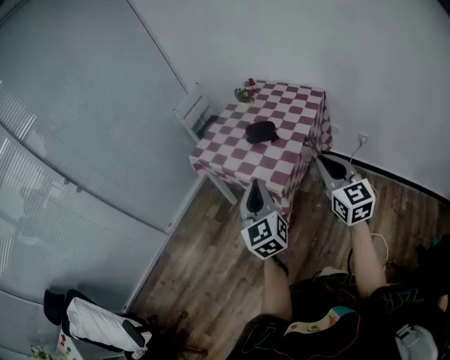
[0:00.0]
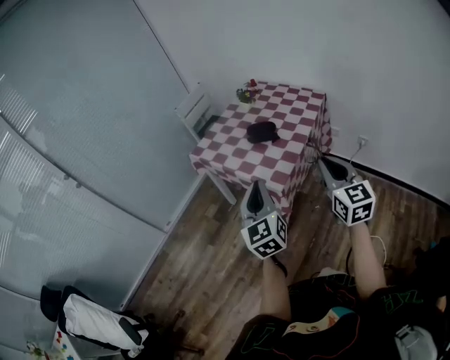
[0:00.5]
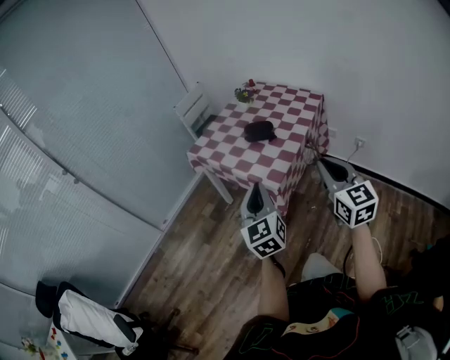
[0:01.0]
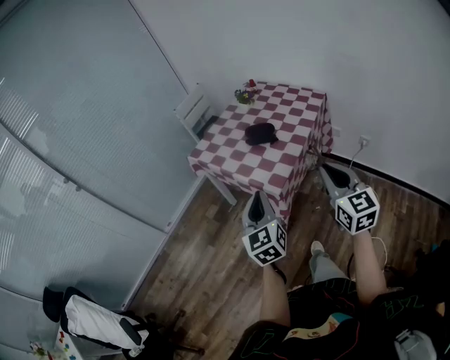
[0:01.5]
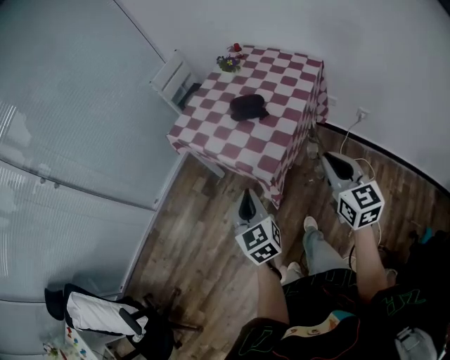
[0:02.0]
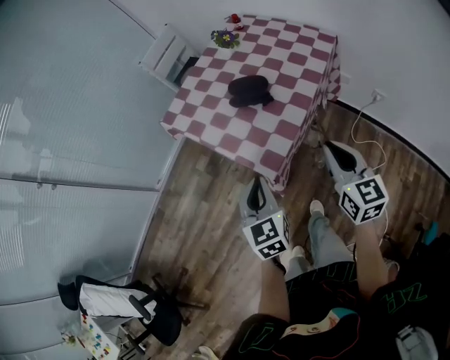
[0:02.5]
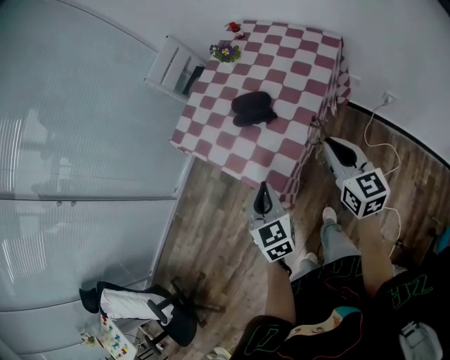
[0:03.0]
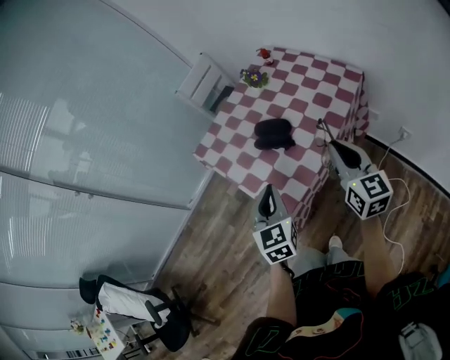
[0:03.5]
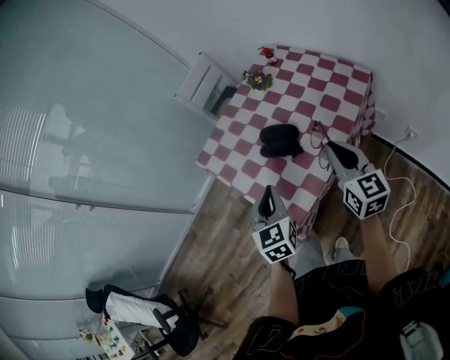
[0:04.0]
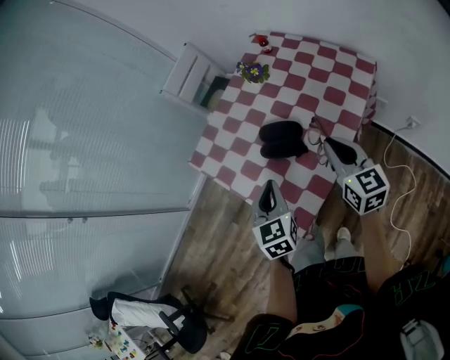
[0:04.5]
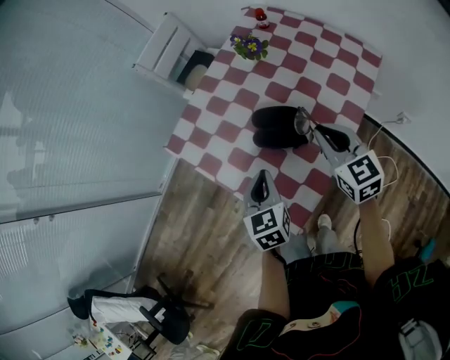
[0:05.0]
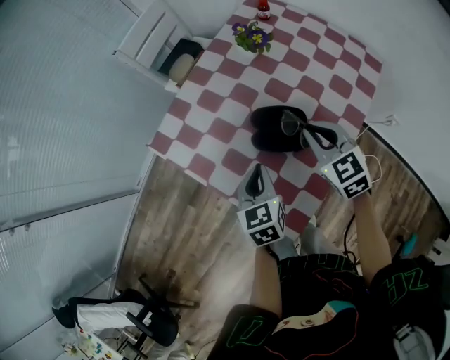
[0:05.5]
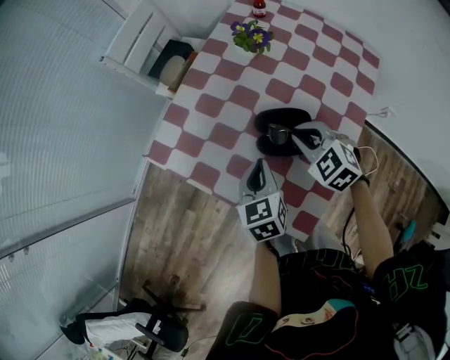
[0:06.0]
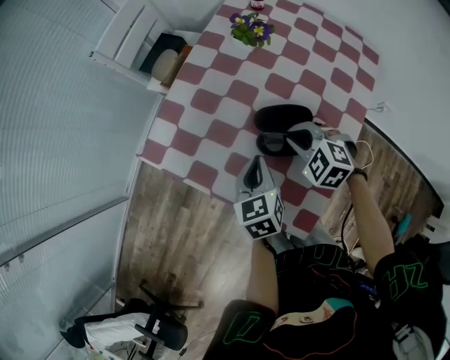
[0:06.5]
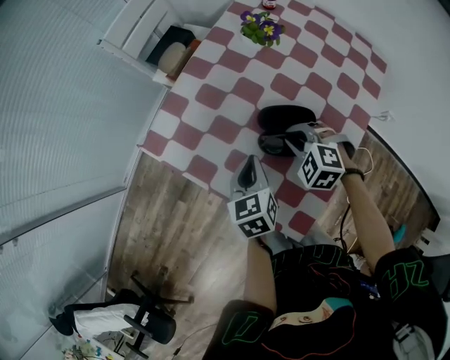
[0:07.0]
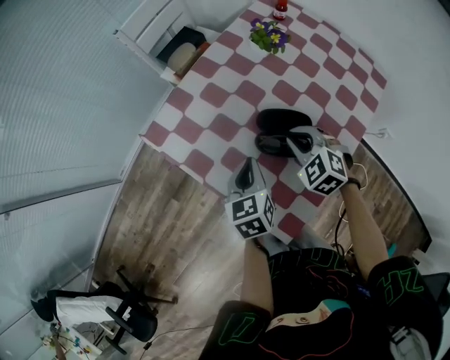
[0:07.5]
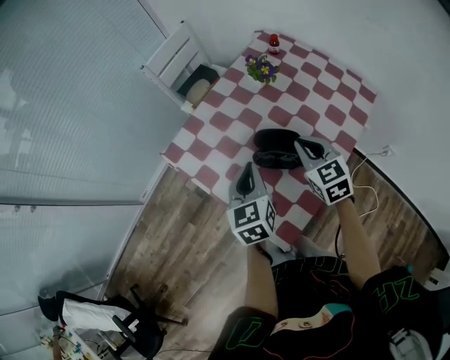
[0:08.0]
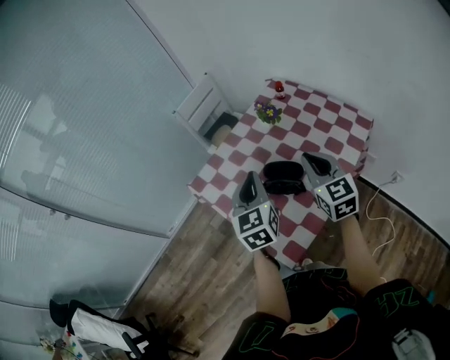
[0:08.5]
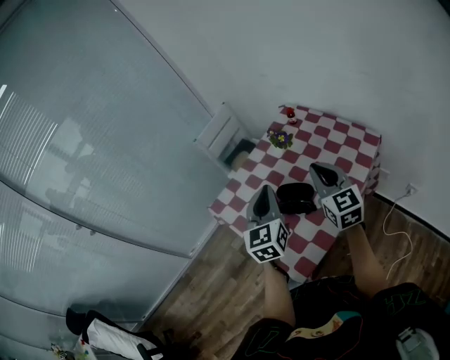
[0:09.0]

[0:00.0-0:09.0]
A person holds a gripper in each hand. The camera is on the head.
0.0 to 2.0 s: The left gripper shifts some 10 cm downward, and turns by about 20 degrees. Meanwhile the right gripper shifts roughly 5 cm downward.
2.0 to 4.5 s: The two grippers go roughly 30 cm forward.
4.5 to 7.0 s: The left gripper heads downward, forward and to the left, covering some 20 cm, and swivels roughly 20 degrees. Meanwhile the right gripper shifts roughly 25 cm downward, to the left and forward, and tips its fingers downward by roughly 50 degrees.
7.0 to 9.0 s: The grippers both shift upward by some 30 cm. The right gripper tips its fingers upward by approximately 60 degrees. The left gripper points its fingers some 30 degrees further upward.

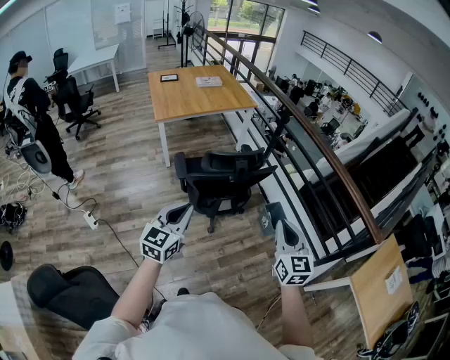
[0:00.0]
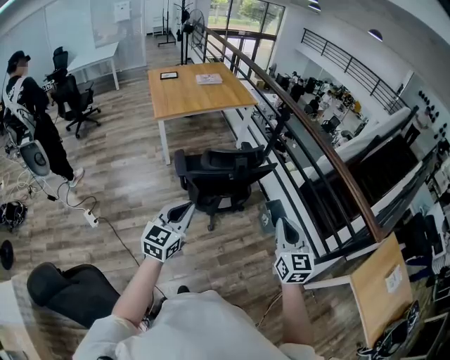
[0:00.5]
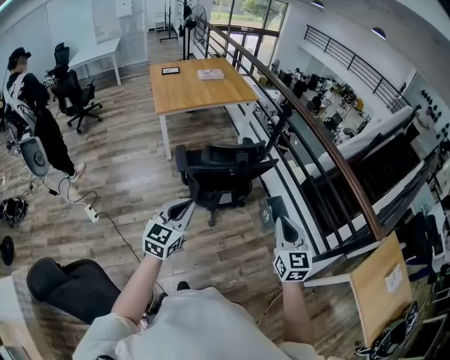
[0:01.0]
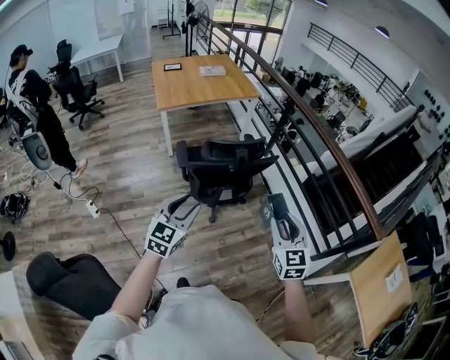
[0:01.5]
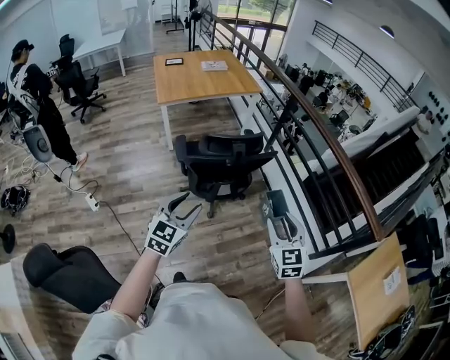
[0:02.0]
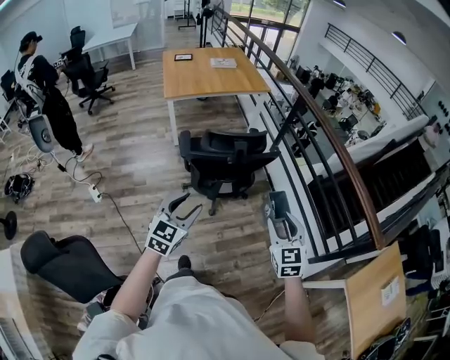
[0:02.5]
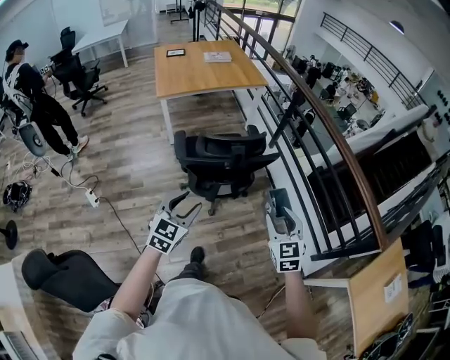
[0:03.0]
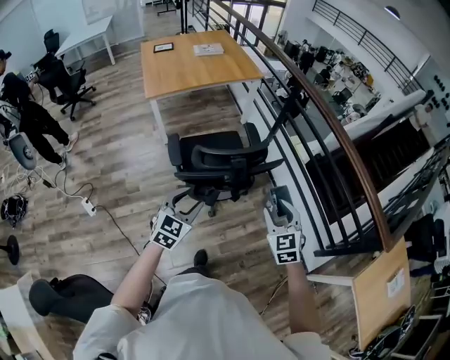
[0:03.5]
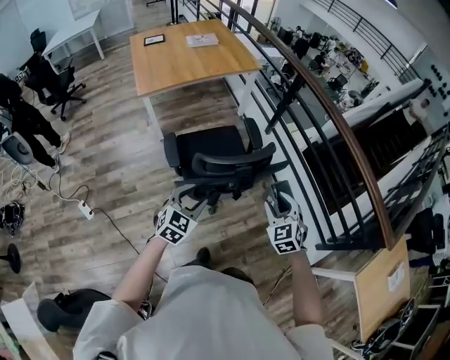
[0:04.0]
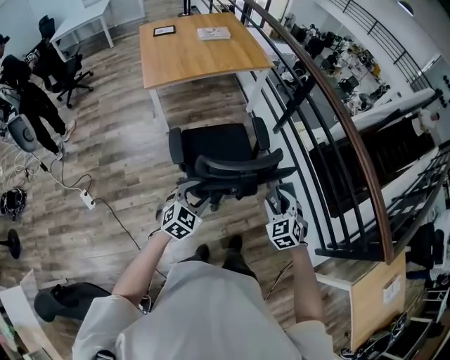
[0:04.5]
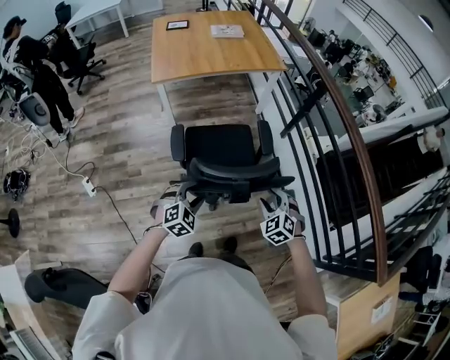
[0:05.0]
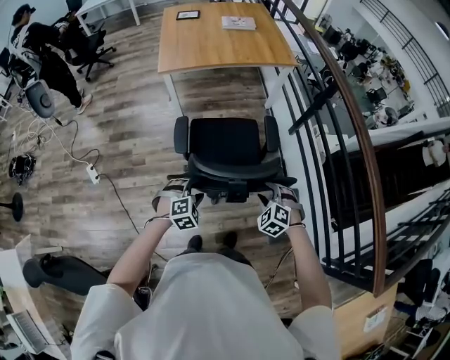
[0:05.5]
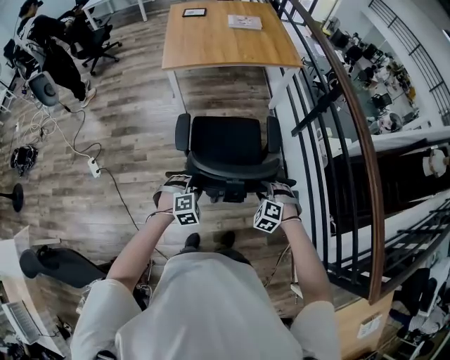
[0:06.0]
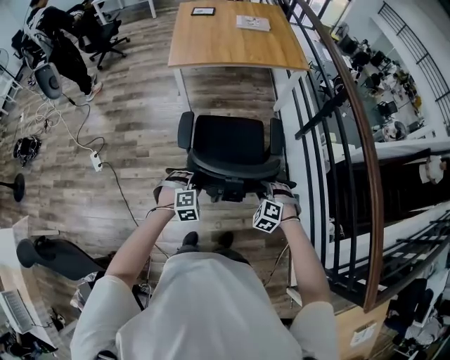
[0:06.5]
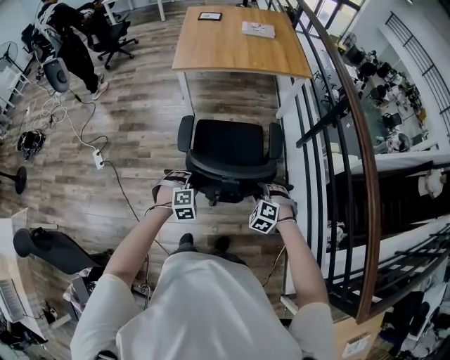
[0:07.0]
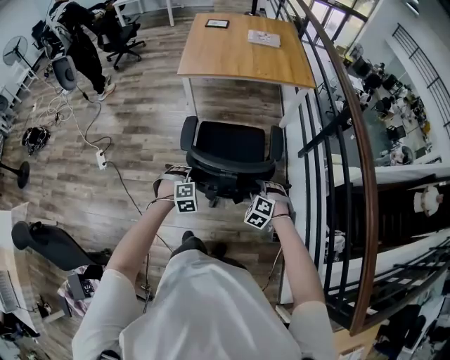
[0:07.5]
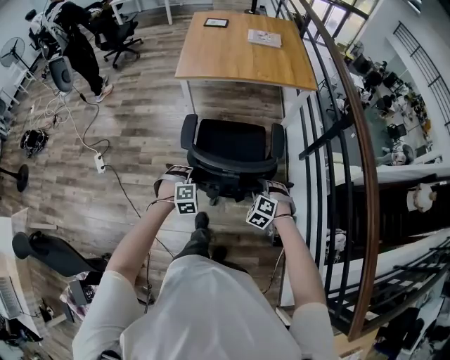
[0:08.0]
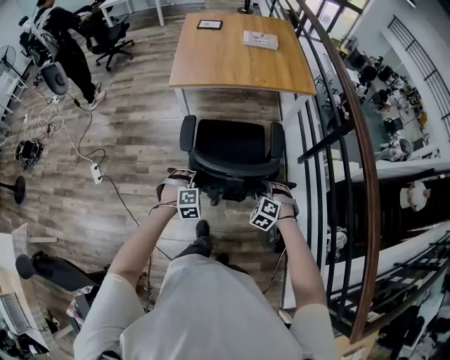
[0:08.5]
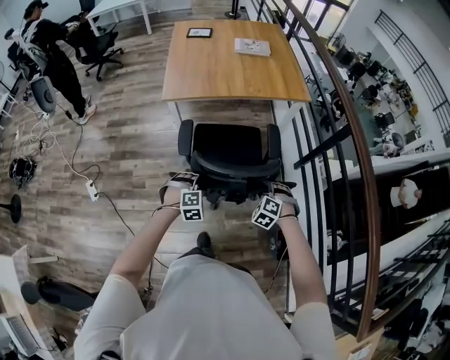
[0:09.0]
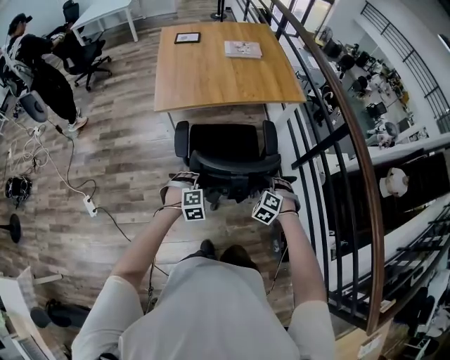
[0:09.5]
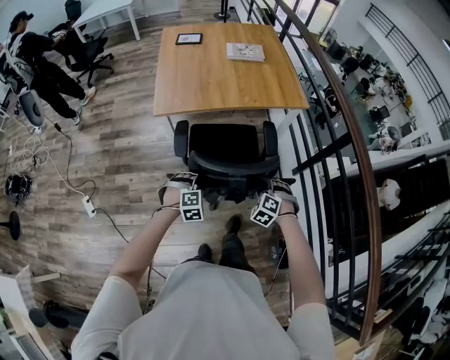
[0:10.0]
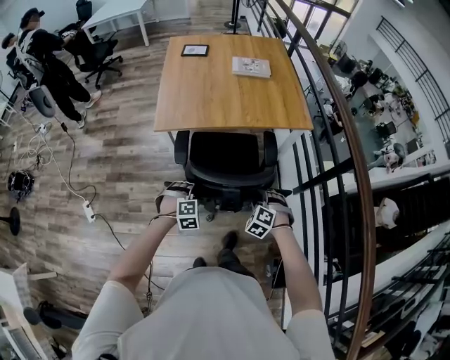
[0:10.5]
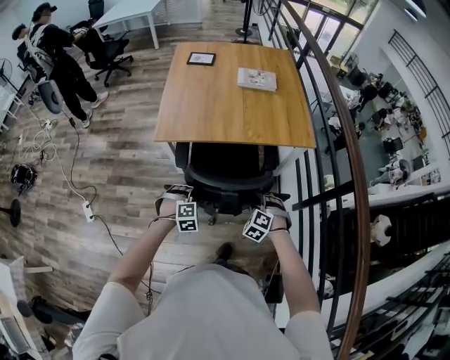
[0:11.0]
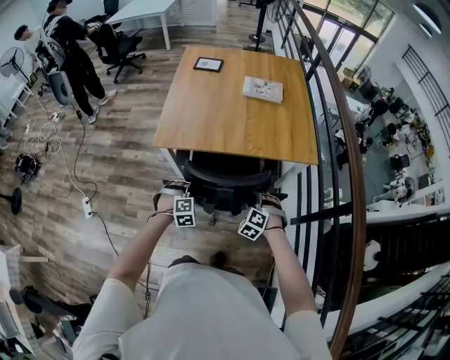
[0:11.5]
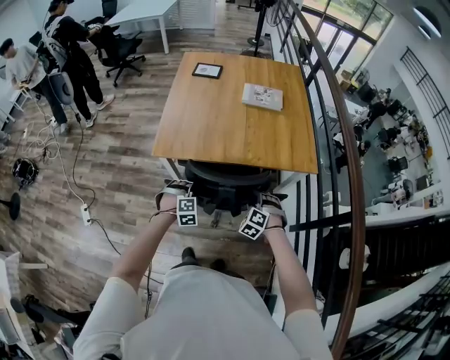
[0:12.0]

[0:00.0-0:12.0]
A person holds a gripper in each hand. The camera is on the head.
0.0 to 2.0 s: The left gripper is displaced to the right by roughly 5 cm, and opens its fingers. The right gripper goes roughly 5 cm downward, and opens its fingers.
2.0 to 4.0 s: The grippers both shift forward and downward by roughly 30 cm. The right gripper changes its angle by some 20 degrees.
4.0 to 6.0 s: The grippers both shift downward and forward by approximately 20 cm. The right gripper rolls counterclockwise, seen from behind, by about 50 degrees, while the left gripper turns by roughly 40 degrees.
6.0 to 8.0 s: Both grippers travel together forward, about 10 cm.
8.0 to 10.0 s: The grippers both shift forward by approximately 25 cm.
10.0 to 12.0 s: The two grippers go about 25 cm forward.

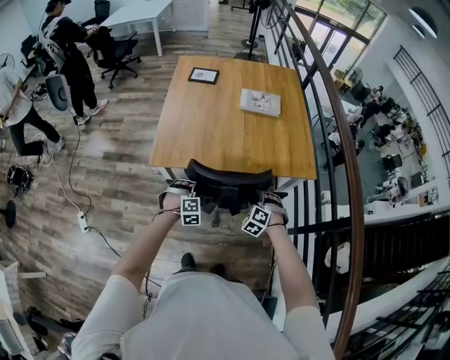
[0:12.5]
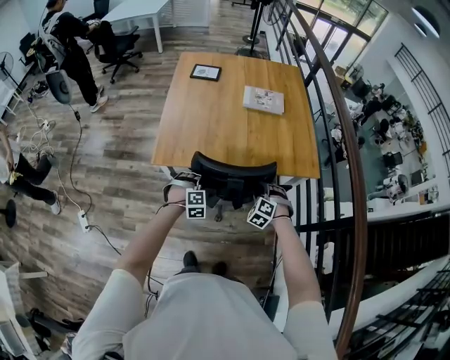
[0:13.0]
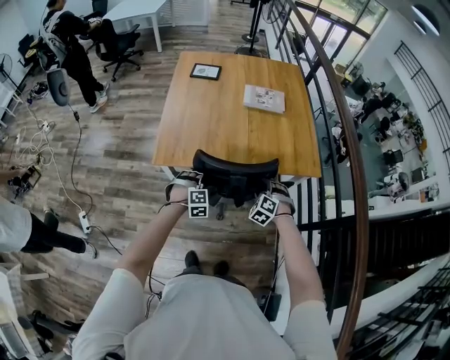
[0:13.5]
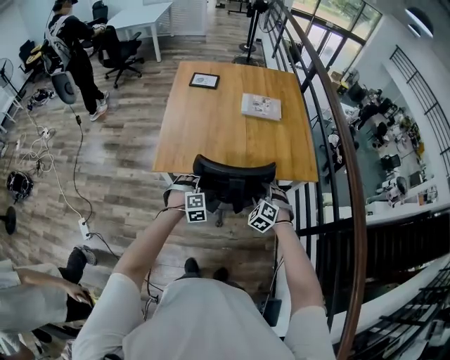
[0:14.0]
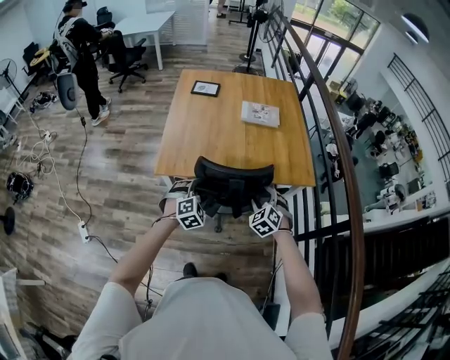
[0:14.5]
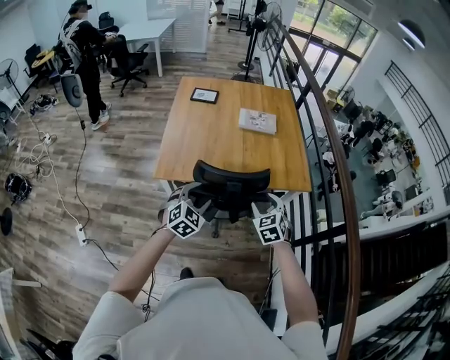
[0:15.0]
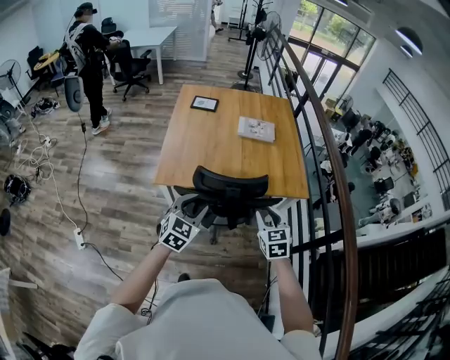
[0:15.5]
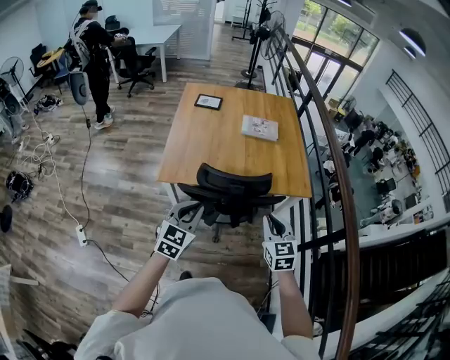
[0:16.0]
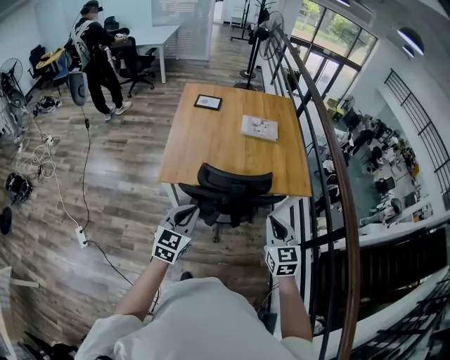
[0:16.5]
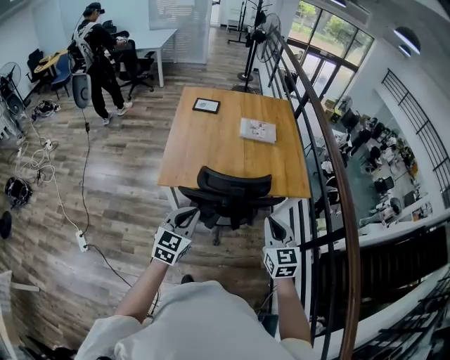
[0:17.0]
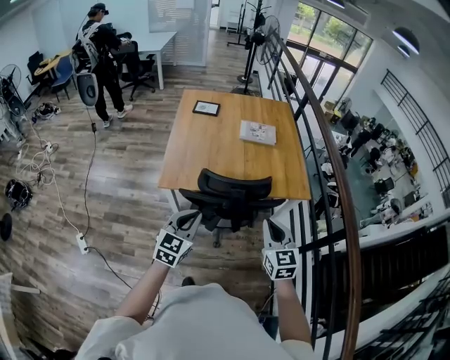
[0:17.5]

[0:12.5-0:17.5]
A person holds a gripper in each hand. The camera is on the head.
12.5 to 15.0 s: Both grippers move upward, roughly 15 cm. The right gripper rotates roughly 40 degrees; the left gripper turns by roughly 40 degrees, and opens up.
15.0 to 17.5 s: The grippers both shift backward and upward by approximately 10 cm. The left gripper turns by about 30 degrees, and closes its fingers, while the right gripper turns by approximately 30 degrees, and closes.

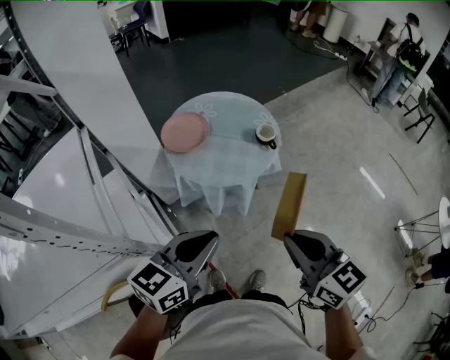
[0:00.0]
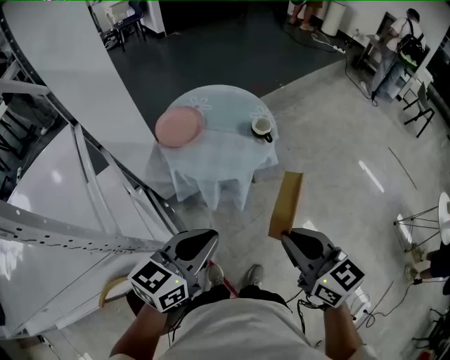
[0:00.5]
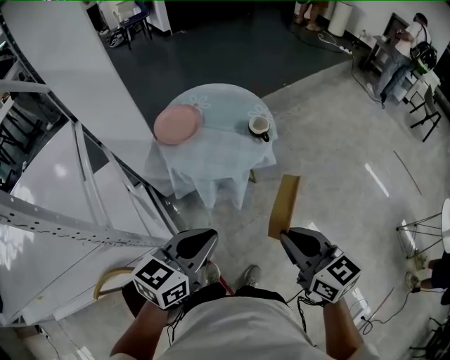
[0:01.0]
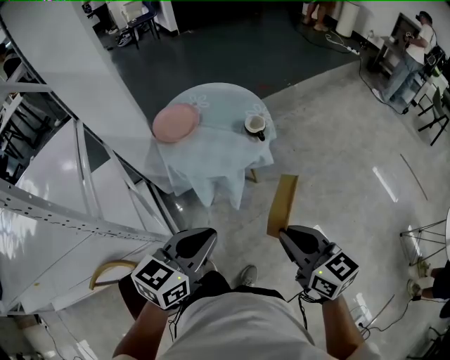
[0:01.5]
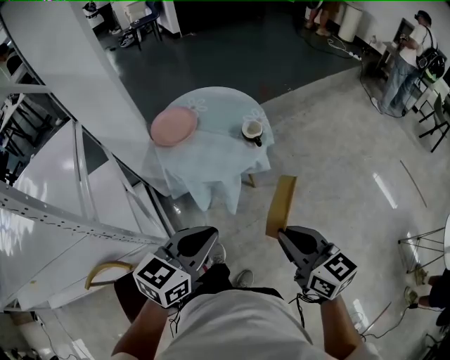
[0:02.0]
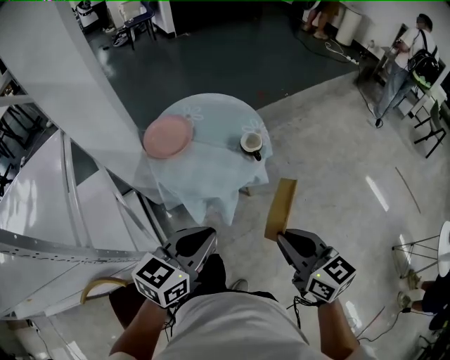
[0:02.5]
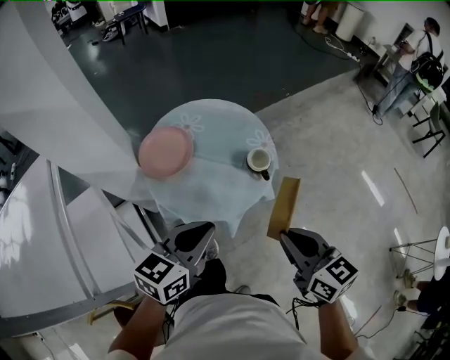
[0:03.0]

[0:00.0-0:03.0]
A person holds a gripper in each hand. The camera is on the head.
0.0 to 1.5 s: The left gripper is displaced to the right by about 10 cm. Meanwhile the right gripper travels to the right and downward by some 15 cm.
1.5 to 3.0 s: Both grippers move forward, some 20 cm.
